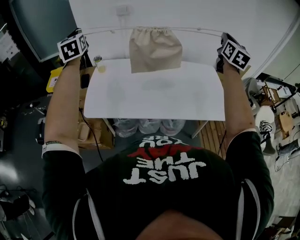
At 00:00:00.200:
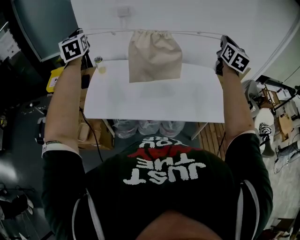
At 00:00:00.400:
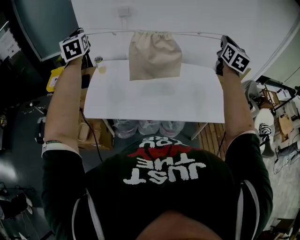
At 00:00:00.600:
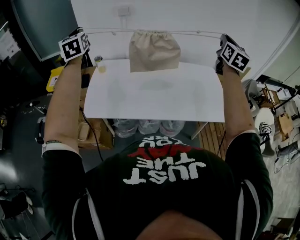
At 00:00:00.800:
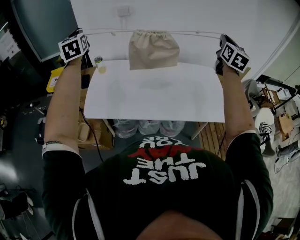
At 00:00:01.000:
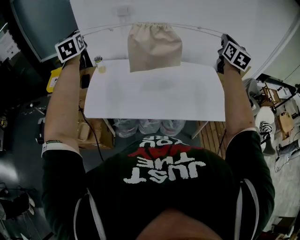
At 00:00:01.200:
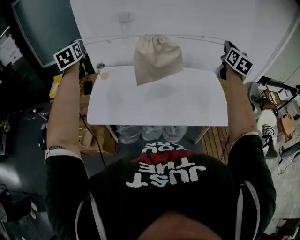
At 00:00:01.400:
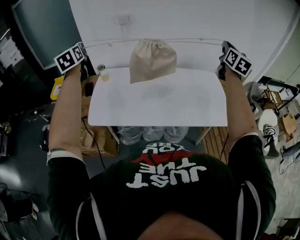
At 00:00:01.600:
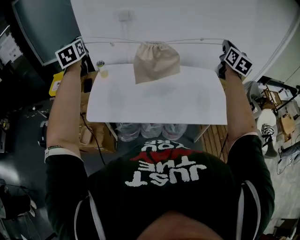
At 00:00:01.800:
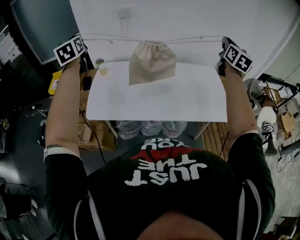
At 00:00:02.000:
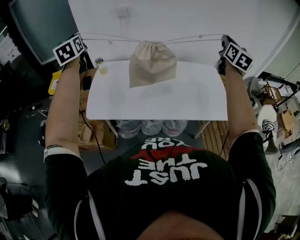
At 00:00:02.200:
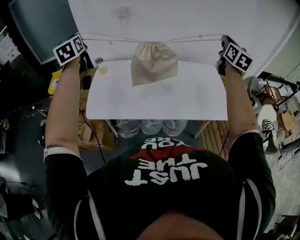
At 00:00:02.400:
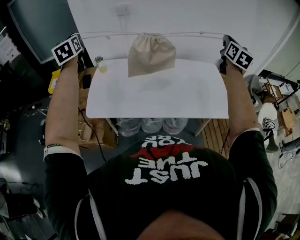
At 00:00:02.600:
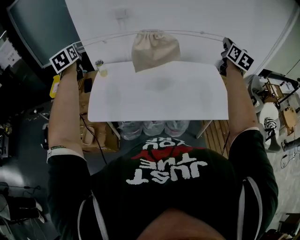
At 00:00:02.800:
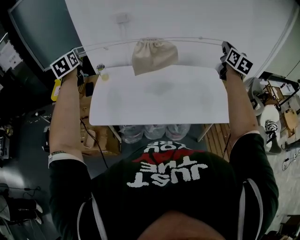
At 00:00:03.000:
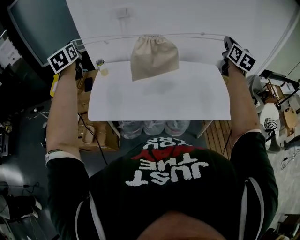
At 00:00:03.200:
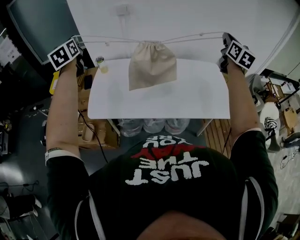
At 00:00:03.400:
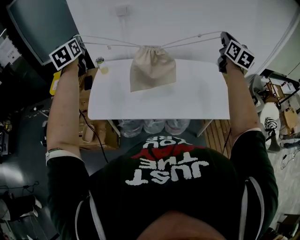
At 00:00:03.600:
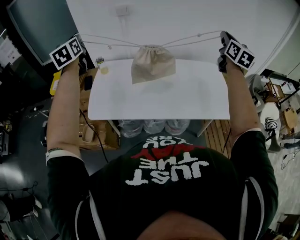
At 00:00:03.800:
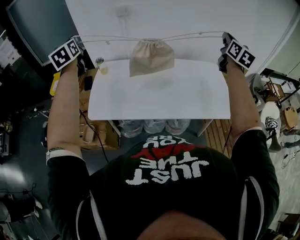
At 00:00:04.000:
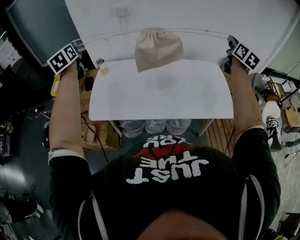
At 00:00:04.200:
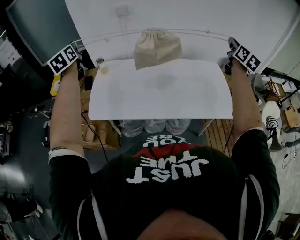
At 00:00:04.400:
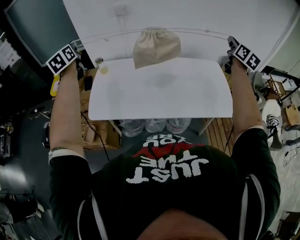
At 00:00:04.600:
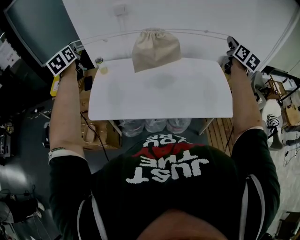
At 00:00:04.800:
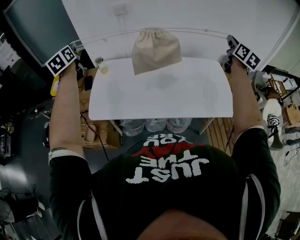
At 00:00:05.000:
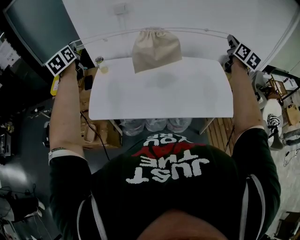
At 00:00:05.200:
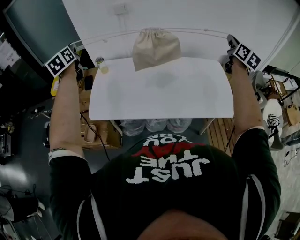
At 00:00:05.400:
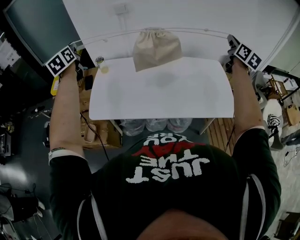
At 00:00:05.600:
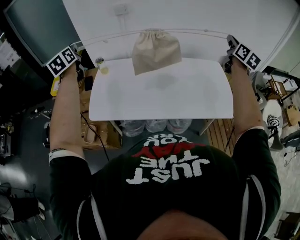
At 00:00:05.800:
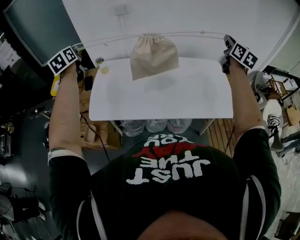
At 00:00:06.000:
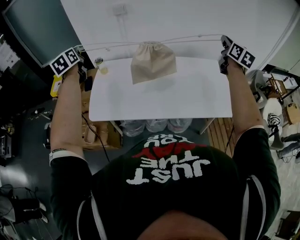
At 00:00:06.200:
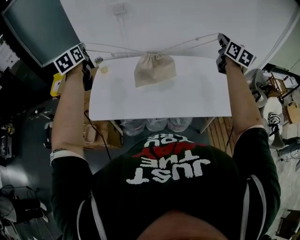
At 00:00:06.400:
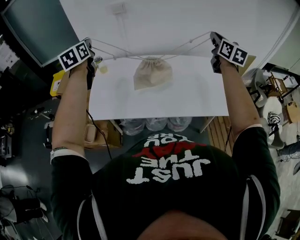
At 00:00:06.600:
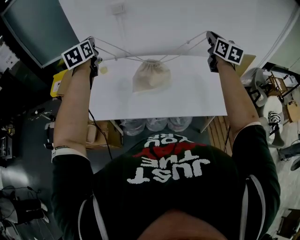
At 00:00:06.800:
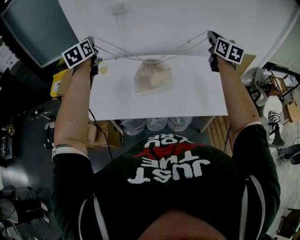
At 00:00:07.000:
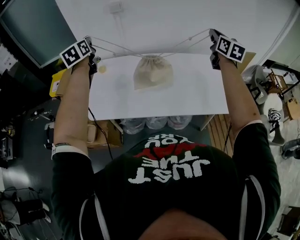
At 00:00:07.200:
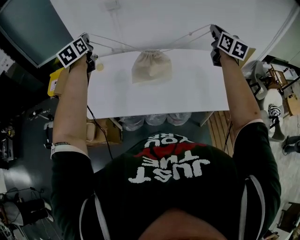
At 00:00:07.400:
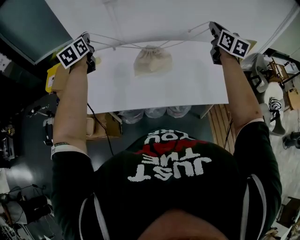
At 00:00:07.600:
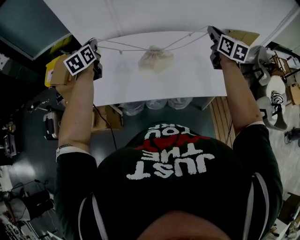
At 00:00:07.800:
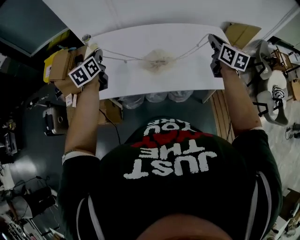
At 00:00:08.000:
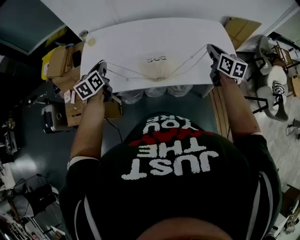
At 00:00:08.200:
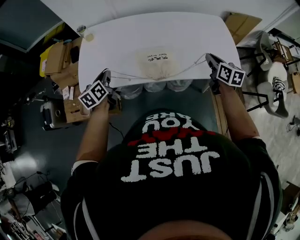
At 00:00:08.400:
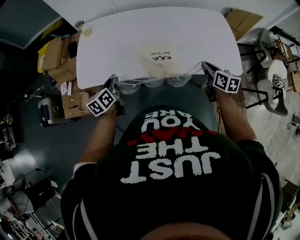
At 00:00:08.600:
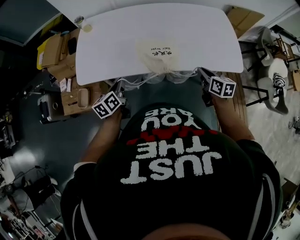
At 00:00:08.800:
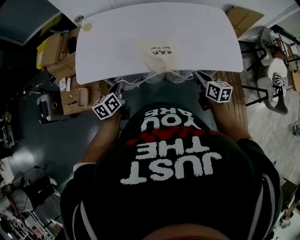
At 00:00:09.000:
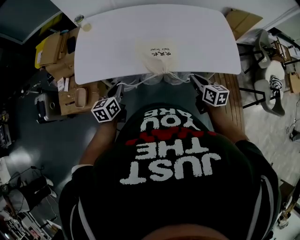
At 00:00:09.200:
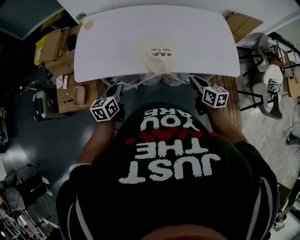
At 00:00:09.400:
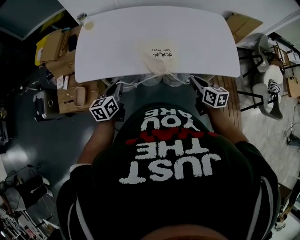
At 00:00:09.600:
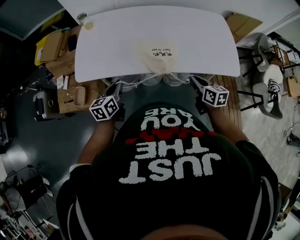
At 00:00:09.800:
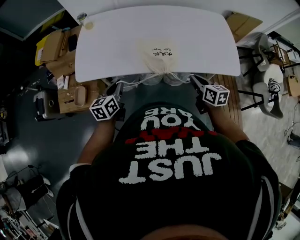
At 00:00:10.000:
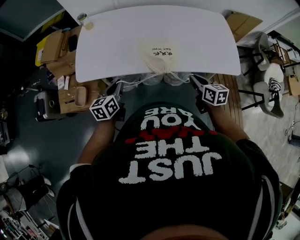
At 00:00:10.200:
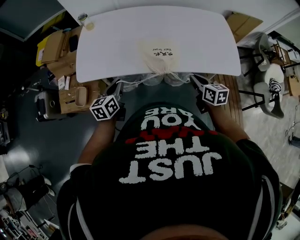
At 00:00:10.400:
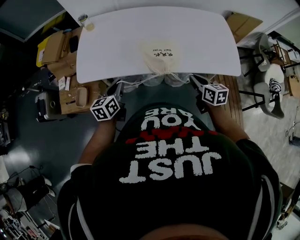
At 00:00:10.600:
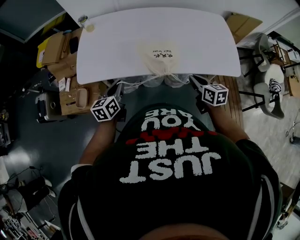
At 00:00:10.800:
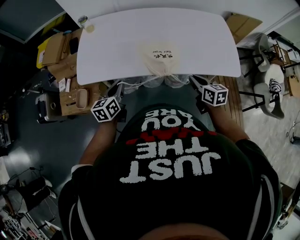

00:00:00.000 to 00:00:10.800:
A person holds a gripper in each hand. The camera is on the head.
00:00:00.000 to 00:00:01.600: The grippers make only small movements.
00:00:01.600 to 00:00:04.600: The grippers make only small movements.
00:00:04.600 to 00:00:06.200: The left gripper changes place by approximately 5 cm. The right gripper heads to the left, covering about 5 cm.
00:00:06.200 to 00:00:07.800: The right gripper shifts roughly 15 cm downward. The left gripper travels downward and to the right by about 20 cm.
00:00:07.800 to 00:00:09.200: The right gripper is displaced downward, backward and to the left by about 30 cm, and swivels some 20 degrees, while the left gripper shifts approximately 30 cm backward and downward.
00:00:09.200 to 00:00:10.800: The grippers make only small movements.

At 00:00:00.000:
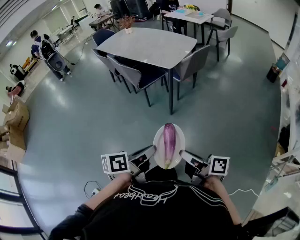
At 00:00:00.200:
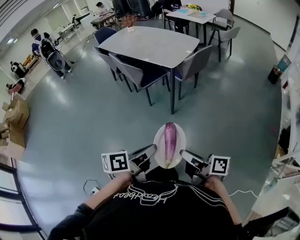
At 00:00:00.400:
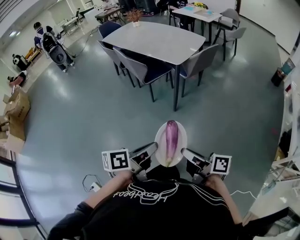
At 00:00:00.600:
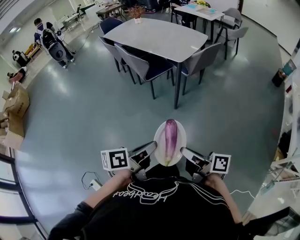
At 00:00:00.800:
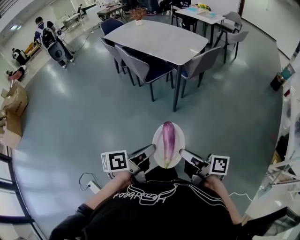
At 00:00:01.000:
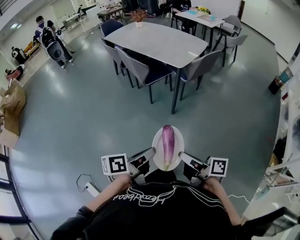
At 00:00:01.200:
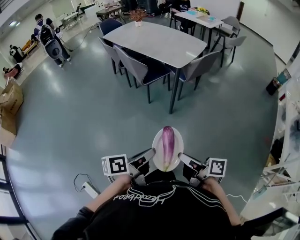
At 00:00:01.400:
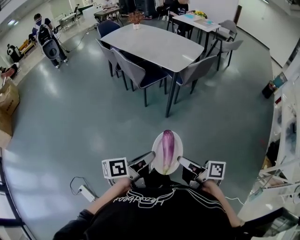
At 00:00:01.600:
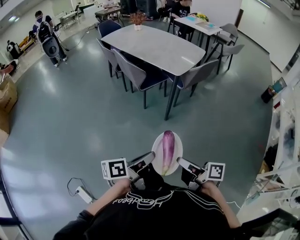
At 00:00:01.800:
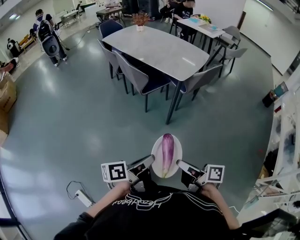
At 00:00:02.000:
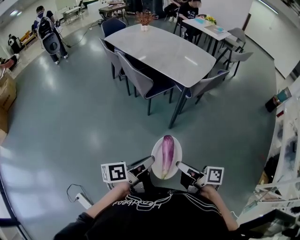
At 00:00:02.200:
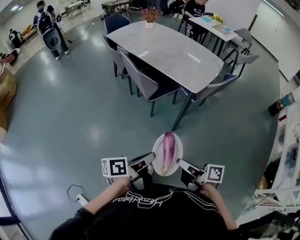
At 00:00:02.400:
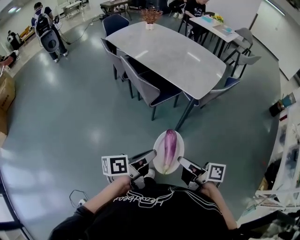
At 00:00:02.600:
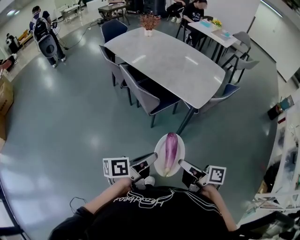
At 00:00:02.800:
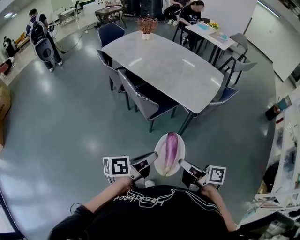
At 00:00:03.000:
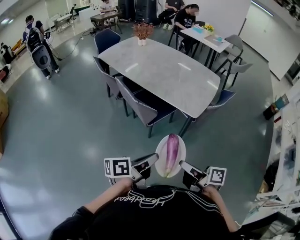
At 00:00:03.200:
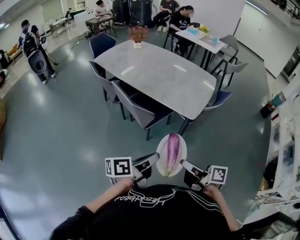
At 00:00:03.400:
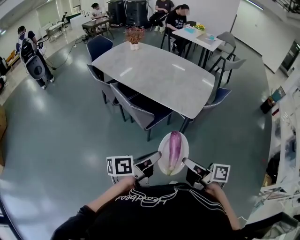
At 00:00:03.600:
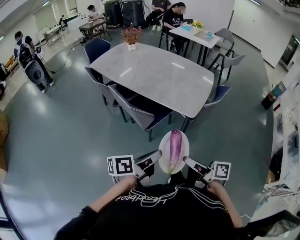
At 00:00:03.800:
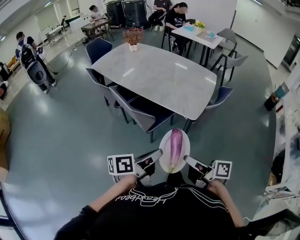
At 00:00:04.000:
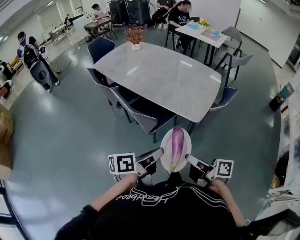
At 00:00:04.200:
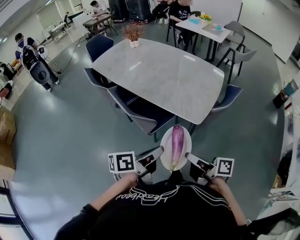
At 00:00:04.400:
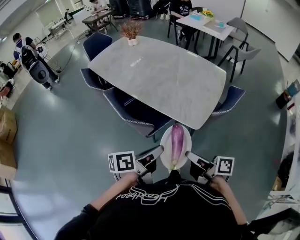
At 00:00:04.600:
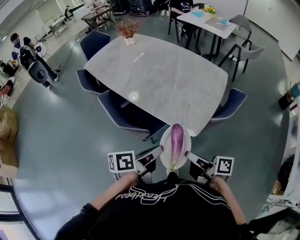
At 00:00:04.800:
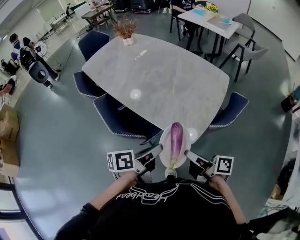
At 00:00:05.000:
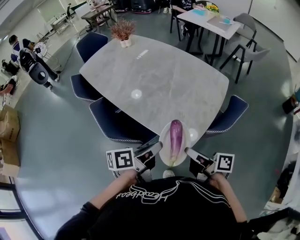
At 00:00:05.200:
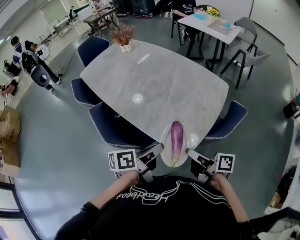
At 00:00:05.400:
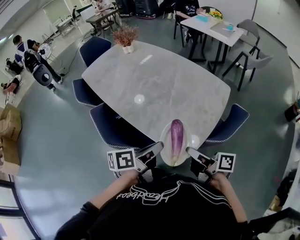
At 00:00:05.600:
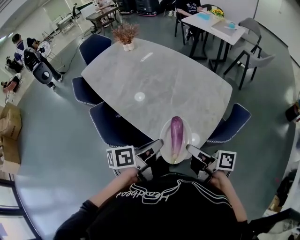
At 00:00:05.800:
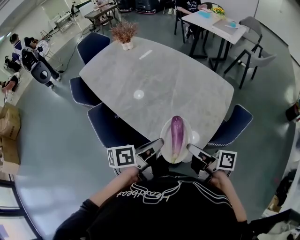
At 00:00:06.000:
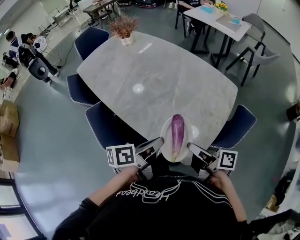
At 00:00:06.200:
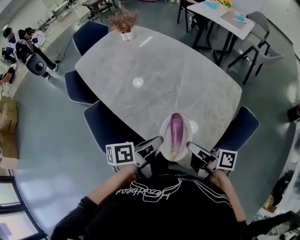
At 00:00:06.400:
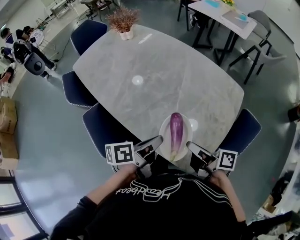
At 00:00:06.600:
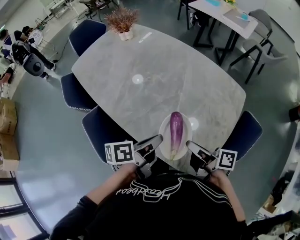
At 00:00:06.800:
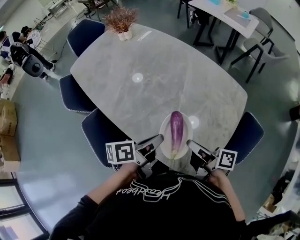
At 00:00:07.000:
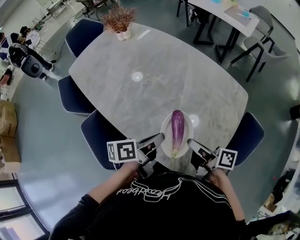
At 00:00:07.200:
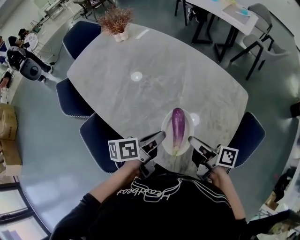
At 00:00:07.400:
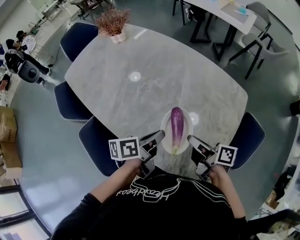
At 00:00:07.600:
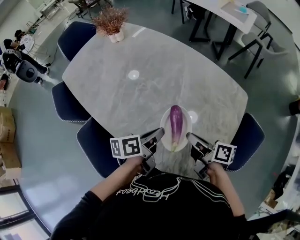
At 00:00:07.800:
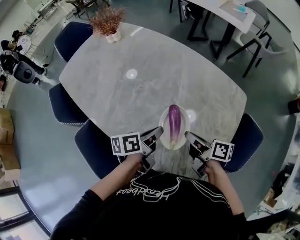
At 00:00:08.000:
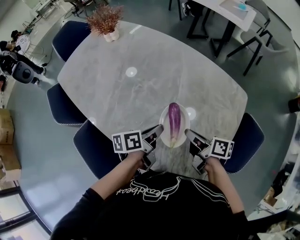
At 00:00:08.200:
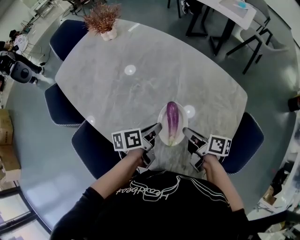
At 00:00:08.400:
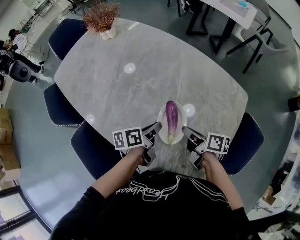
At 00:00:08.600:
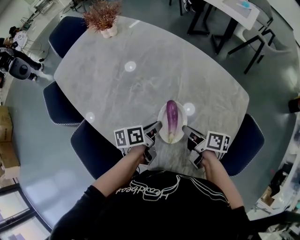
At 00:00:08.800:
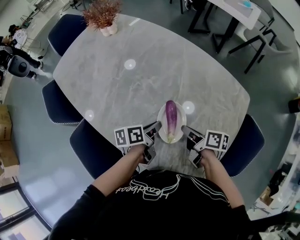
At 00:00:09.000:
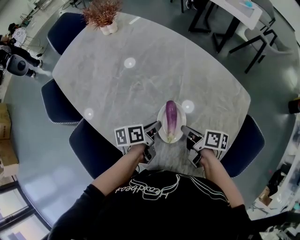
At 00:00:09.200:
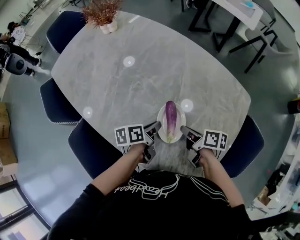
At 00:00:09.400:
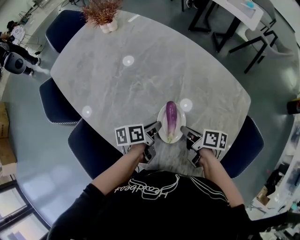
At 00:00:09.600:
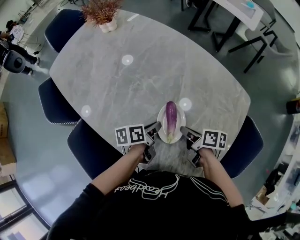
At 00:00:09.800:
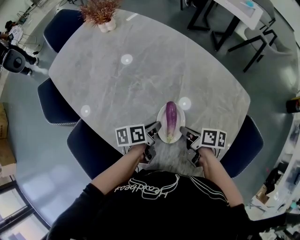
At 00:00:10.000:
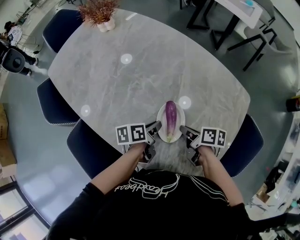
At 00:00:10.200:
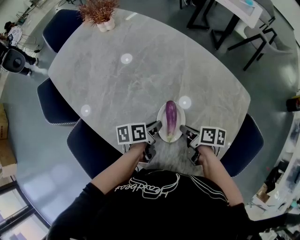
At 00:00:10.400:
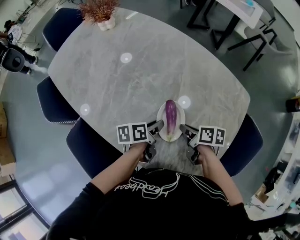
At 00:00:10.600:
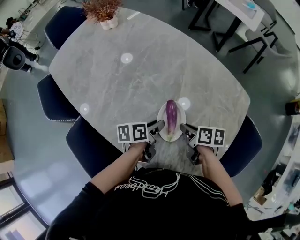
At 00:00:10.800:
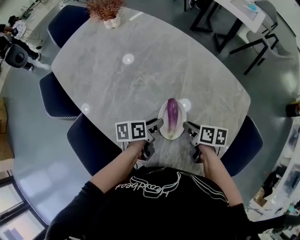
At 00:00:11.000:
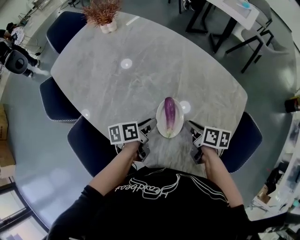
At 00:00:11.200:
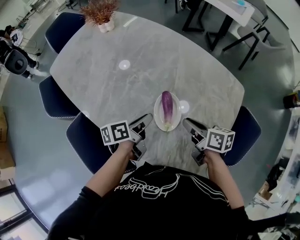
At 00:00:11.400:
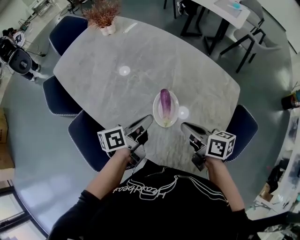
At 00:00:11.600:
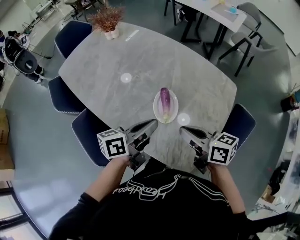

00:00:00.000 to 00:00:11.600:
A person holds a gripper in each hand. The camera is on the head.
00:00:00.000 to 00:00:01.400: The left gripper shifts by some 5 cm.
00:00:01.400 to 00:00:02.800: Both grippers move forward, approximately 35 cm.
00:00:02.800 to 00:00:04.400: Both grippers move forward, some 20 cm.
00:00:04.400 to 00:00:05.800: The two grippers go about 25 cm forward and to the right.
00:00:05.800 to 00:00:07.200: Both grippers move forward, approximately 15 cm.
00:00:07.200 to 00:00:08.800: The grippers both shift downward and forward by about 15 cm.
00:00:08.800 to 00:00:10.200: There are only small adjustments of the grippers.
00:00:10.200 to 00:00:11.600: The grippers both shift upward and backward by about 20 cm. The right gripper changes its angle by about 40 degrees, while the left gripper angles its fingers upward, by some 30 degrees, and opens, then closes again.

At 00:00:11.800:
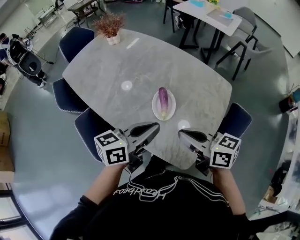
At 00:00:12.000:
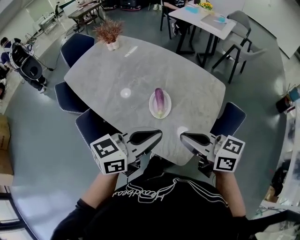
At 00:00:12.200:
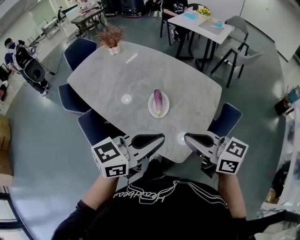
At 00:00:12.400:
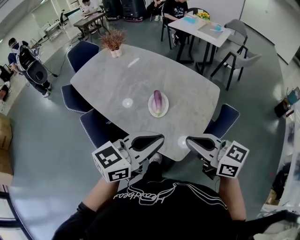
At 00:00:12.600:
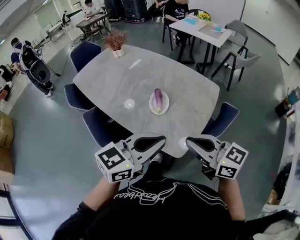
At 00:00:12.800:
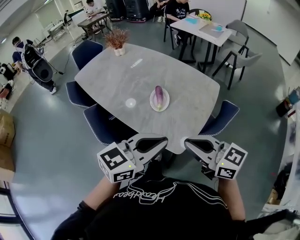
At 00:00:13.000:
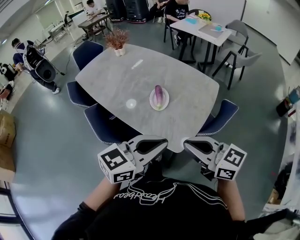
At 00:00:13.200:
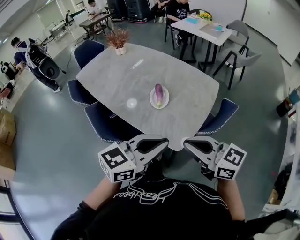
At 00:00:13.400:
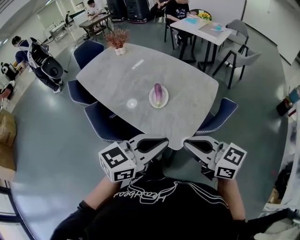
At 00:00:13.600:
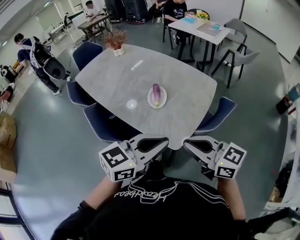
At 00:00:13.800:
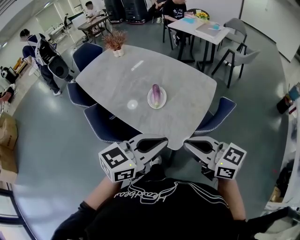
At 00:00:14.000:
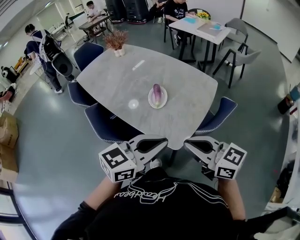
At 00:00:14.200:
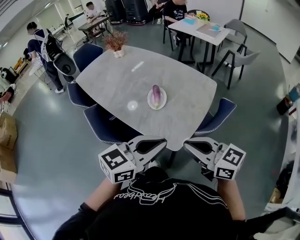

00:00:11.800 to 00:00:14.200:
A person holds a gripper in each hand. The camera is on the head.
00:00:11.800 to 00:00:13.000: Both grippers move backward and upward, about 20 cm. The left gripper turns by some 20 degrees; the right gripper rotates approximately 20 degrees.
00:00:13.000 to 00:00:14.200: There are only small adjustments of the grippers.
